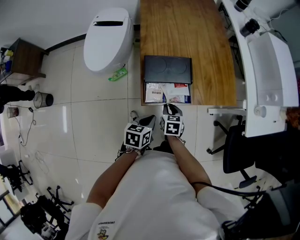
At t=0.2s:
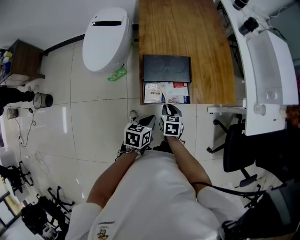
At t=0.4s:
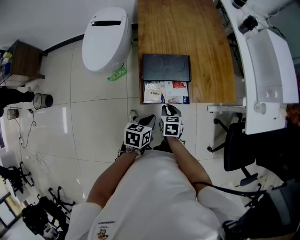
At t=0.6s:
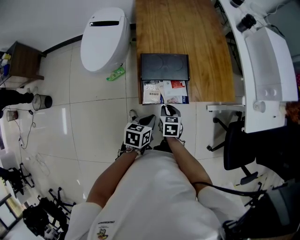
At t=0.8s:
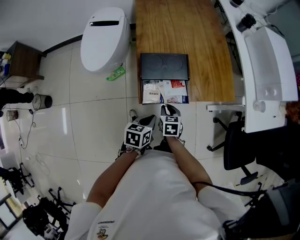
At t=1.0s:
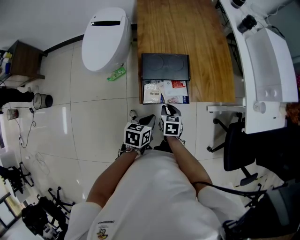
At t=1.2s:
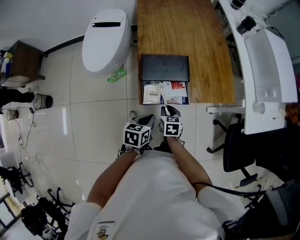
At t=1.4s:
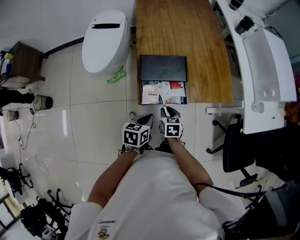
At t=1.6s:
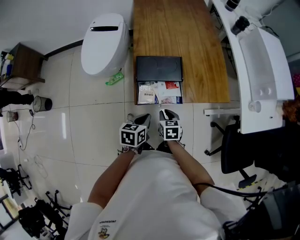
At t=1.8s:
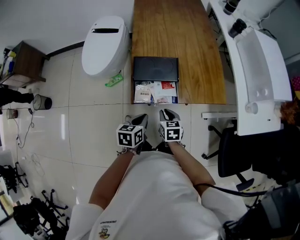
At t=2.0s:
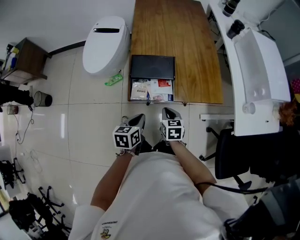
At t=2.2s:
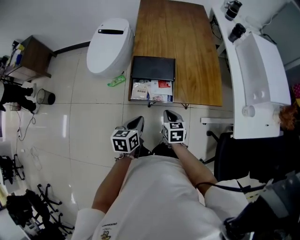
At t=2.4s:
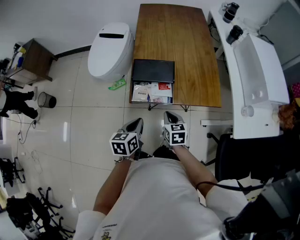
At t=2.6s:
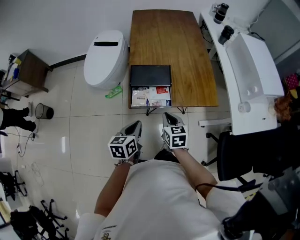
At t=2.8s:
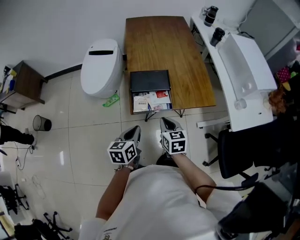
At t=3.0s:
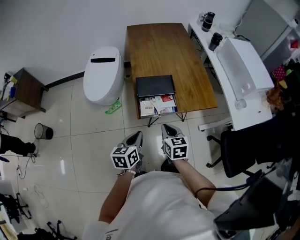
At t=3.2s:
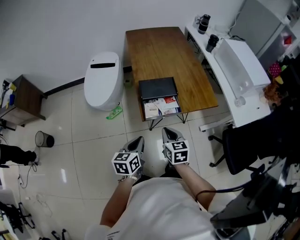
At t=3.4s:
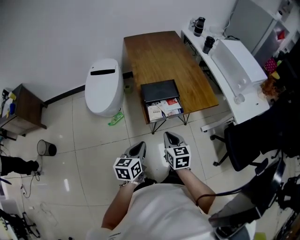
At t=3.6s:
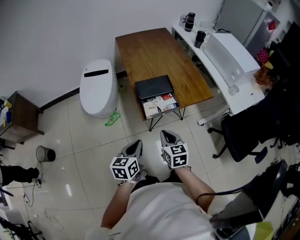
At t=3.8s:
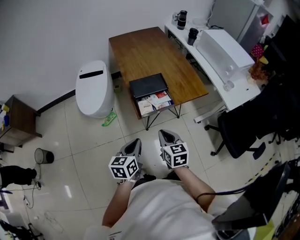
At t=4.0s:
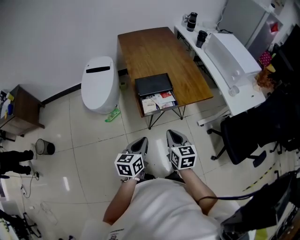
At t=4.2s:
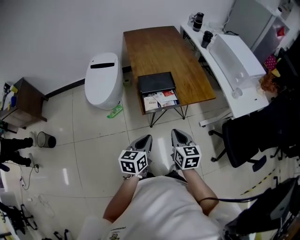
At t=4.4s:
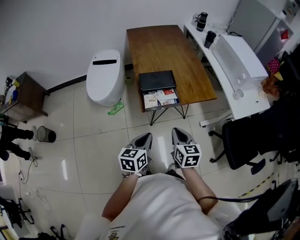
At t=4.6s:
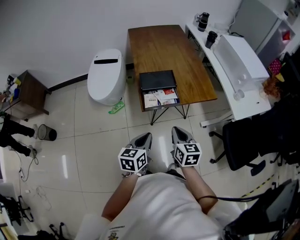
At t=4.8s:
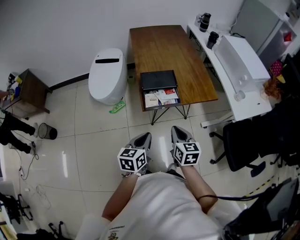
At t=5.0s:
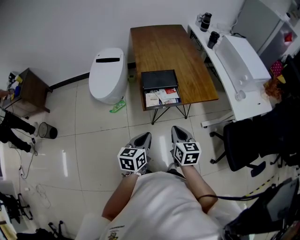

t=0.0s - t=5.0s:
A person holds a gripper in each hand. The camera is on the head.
t=0.0s - t=1.6s: The grippers stay close to where they were, moving slightly.
t=1.6s - t=3.4s: The right gripper shifts about 25 cm upward, backward and to the left, and rotates some 20 degrees. The left gripper goes about 20 cm upward, to the left and backward.
t=3.4s - t=5.0s: The two grippers go roughly 5 cm to the right.

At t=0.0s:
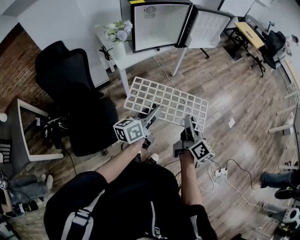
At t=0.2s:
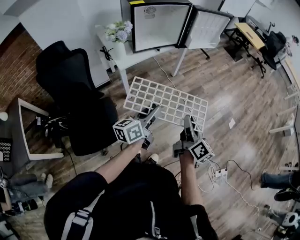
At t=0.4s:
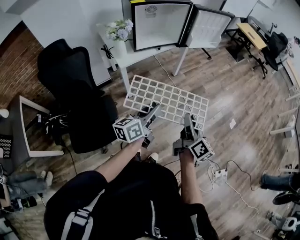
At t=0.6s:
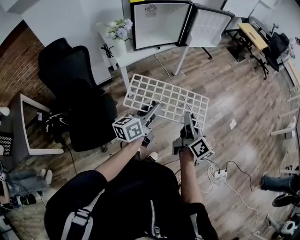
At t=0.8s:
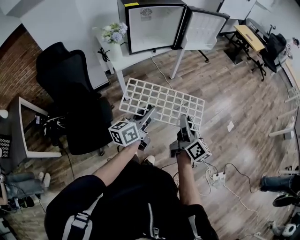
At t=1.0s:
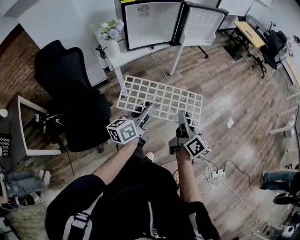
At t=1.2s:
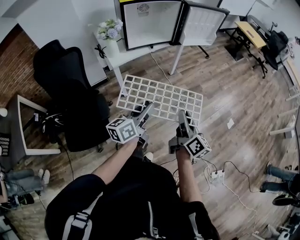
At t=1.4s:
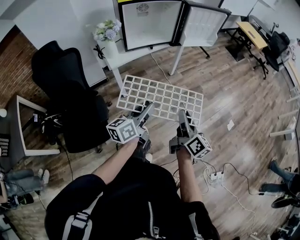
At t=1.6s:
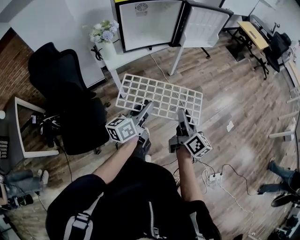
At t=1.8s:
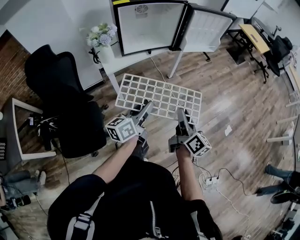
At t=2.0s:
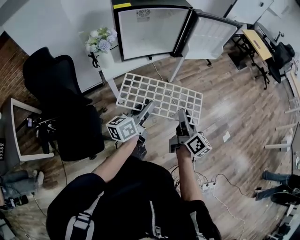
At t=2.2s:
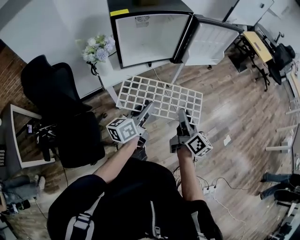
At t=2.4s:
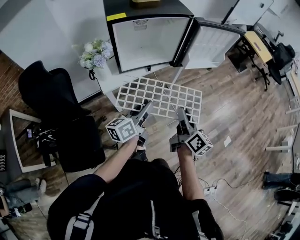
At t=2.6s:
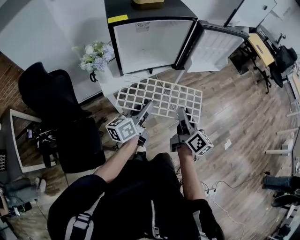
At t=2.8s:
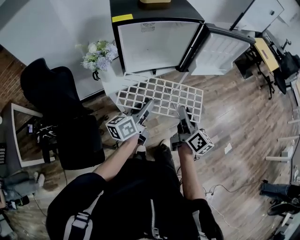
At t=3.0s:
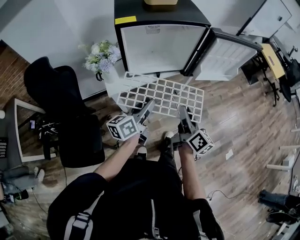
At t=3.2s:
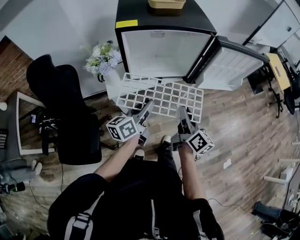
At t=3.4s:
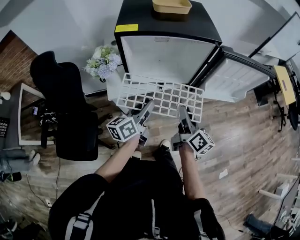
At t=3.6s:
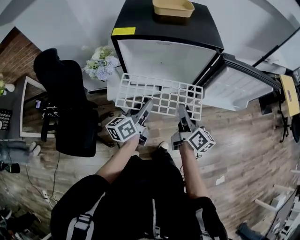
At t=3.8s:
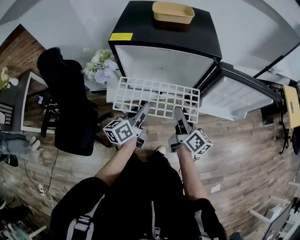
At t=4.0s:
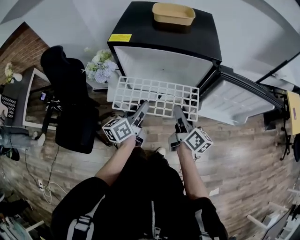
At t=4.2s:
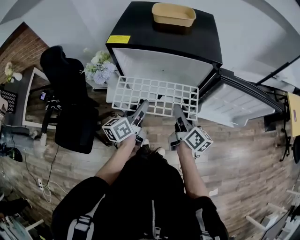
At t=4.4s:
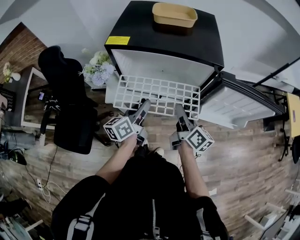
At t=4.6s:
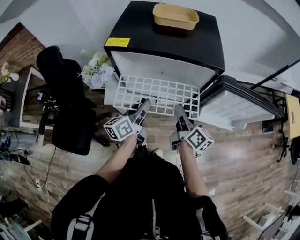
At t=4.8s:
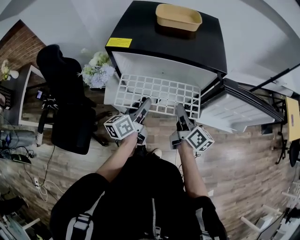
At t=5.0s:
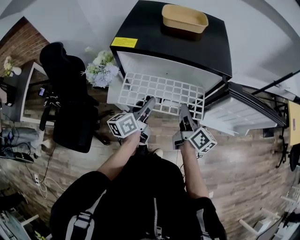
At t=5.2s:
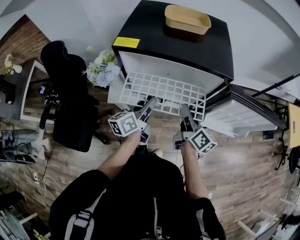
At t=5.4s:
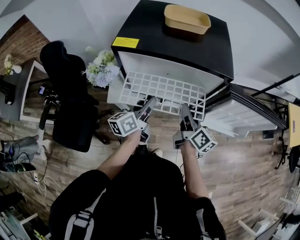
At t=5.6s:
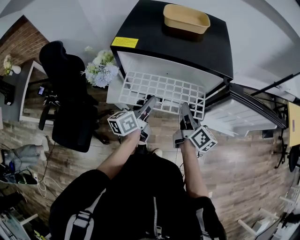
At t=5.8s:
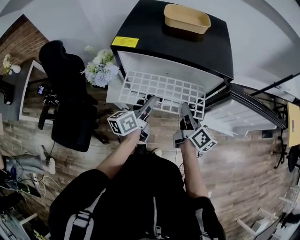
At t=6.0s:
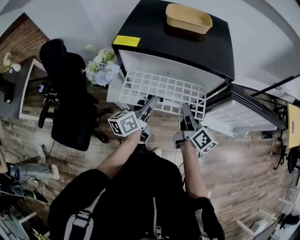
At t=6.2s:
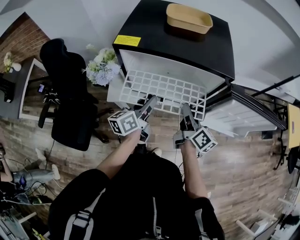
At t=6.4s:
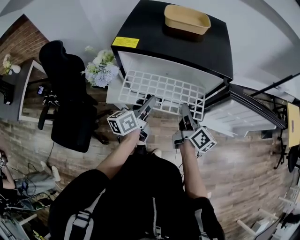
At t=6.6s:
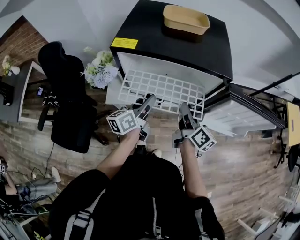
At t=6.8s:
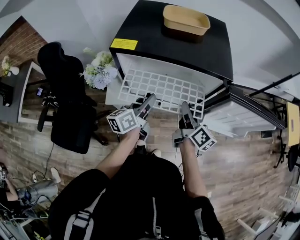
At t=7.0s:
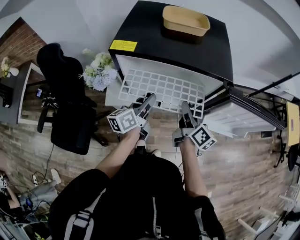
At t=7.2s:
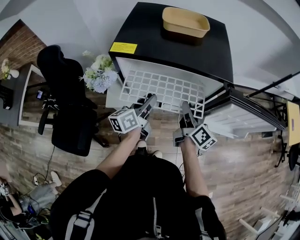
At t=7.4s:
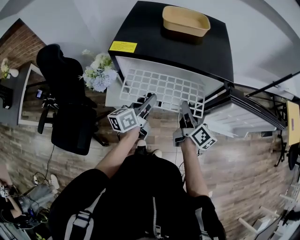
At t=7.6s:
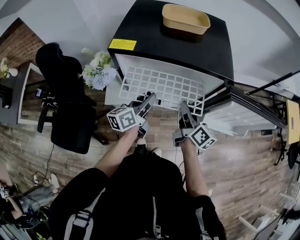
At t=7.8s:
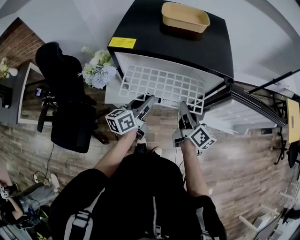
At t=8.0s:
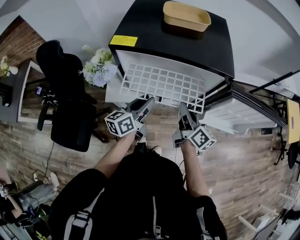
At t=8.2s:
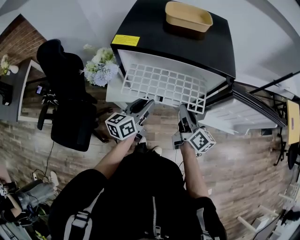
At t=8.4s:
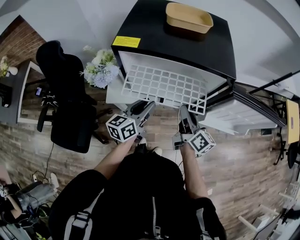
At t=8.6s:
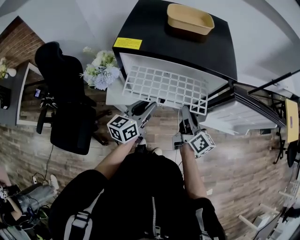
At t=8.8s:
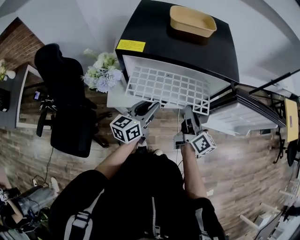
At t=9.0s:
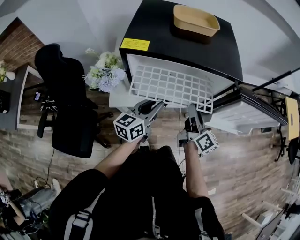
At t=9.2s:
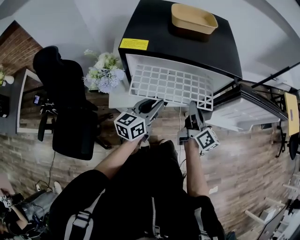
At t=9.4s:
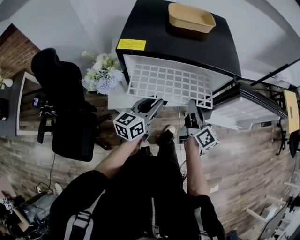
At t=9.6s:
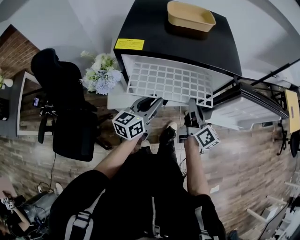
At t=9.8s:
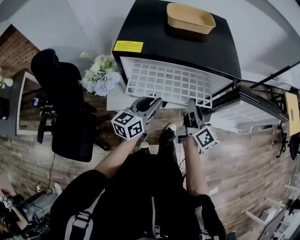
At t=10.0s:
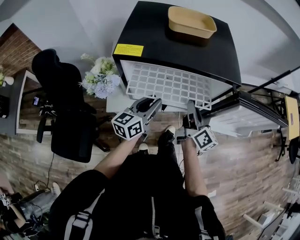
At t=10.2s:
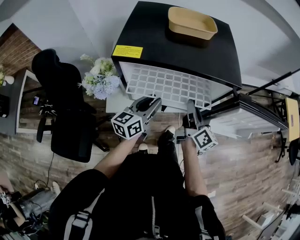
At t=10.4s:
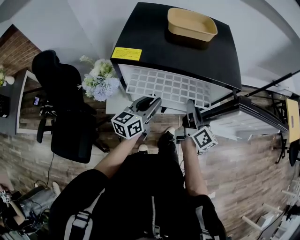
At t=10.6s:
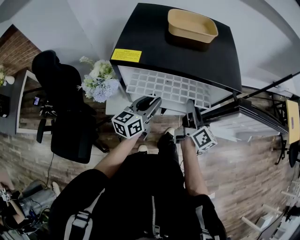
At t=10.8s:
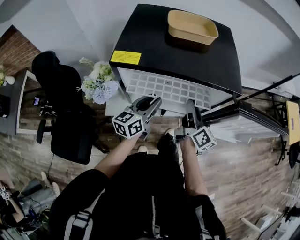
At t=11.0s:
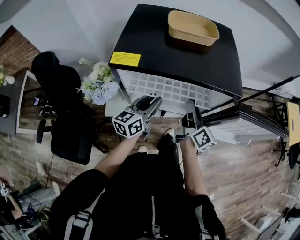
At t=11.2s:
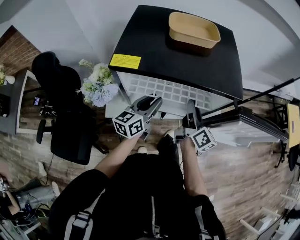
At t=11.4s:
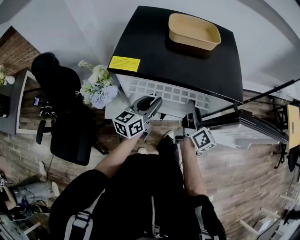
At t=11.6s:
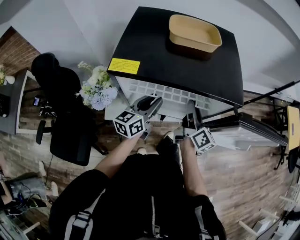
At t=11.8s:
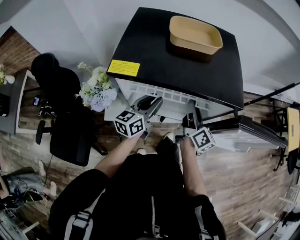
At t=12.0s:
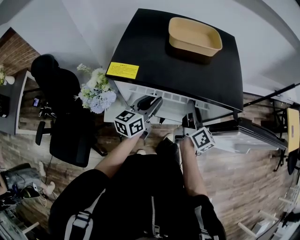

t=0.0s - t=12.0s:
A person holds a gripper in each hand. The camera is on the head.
t=0.0s - t=1.6s: Both grippers travel together forward, roughly 5 cm.
t=1.6s - t=3.0s: The grippers both shift forward by some 30 cm.
t=3.0s - t=4.4s: The left gripper ends up roughly 15 cm from where it was, and swivels about 20 degrees. The right gripper moves approximately 20 cm, and rotates approximately 30 degrees.
t=4.4s - t=6.0s: The grippers move only a little.
t=6.0s - t=7.6s: There are only small adjustments of the grippers.
t=7.6s - t=9.0s: The grippers stay close to where they were, moving slightly.
t=9.0s - t=10.4s: The two grippers go some 5 cm forward.
t=10.4s - t=12.0s: Both grippers move forward, some 5 cm.

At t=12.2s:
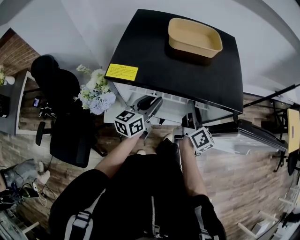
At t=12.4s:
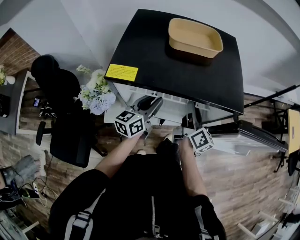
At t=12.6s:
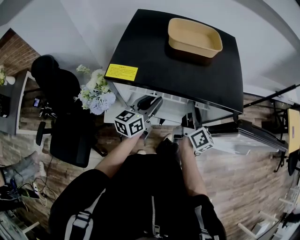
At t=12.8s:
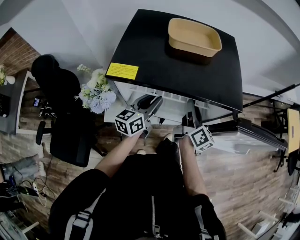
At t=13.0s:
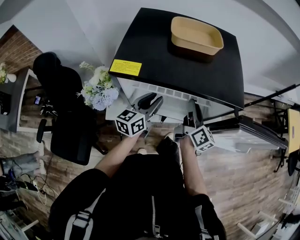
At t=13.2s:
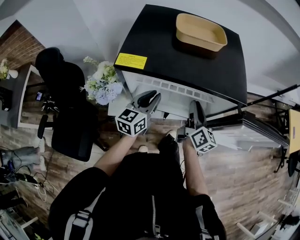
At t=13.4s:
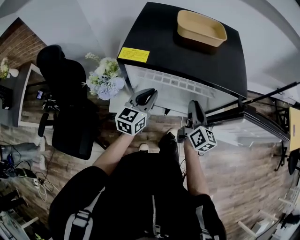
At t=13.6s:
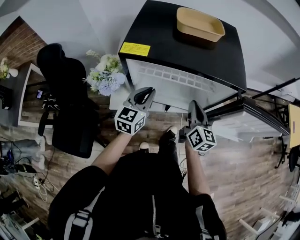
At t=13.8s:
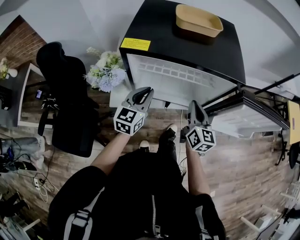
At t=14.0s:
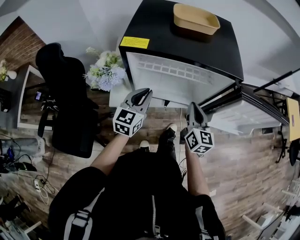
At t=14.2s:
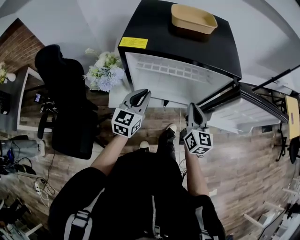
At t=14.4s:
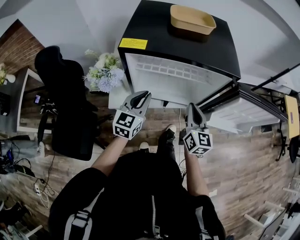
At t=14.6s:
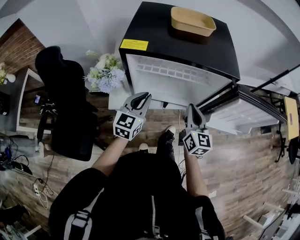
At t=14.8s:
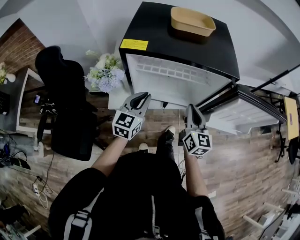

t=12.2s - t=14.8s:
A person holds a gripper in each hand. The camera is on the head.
t=12.2s - t=13.4s: The left gripper shifts by about 5 cm, and closes up. The right gripper moves backward, roughly 5 cm.
t=13.4s - t=14.8s: Both grippers travel together backward, roughly 5 cm. The right gripper turns by roughly 20 degrees.

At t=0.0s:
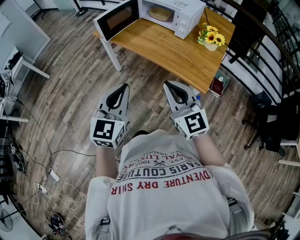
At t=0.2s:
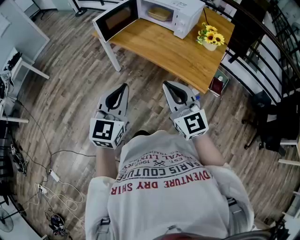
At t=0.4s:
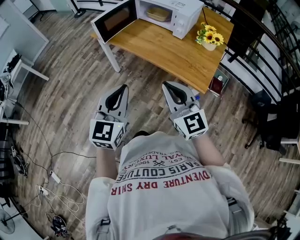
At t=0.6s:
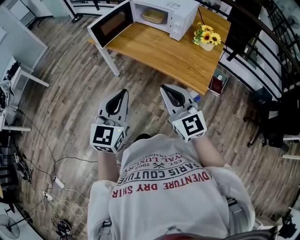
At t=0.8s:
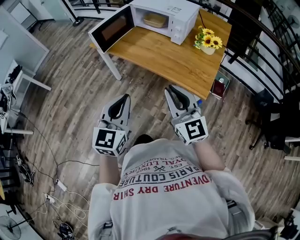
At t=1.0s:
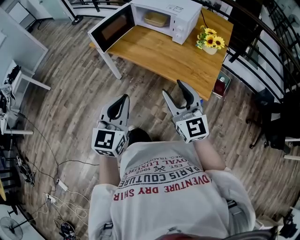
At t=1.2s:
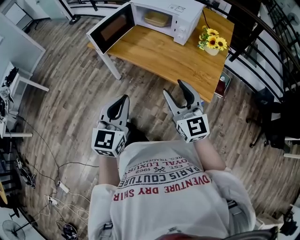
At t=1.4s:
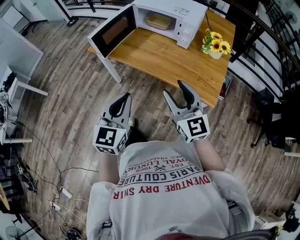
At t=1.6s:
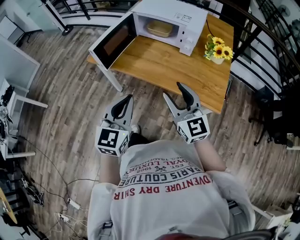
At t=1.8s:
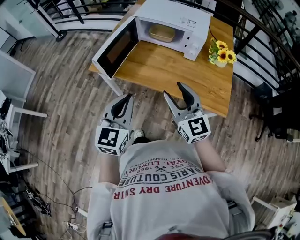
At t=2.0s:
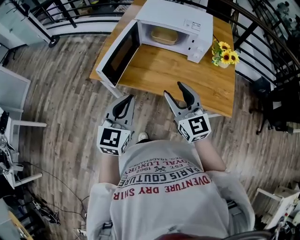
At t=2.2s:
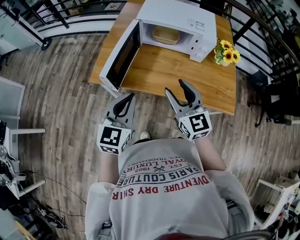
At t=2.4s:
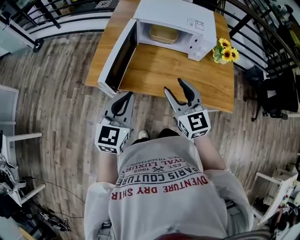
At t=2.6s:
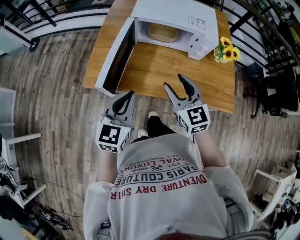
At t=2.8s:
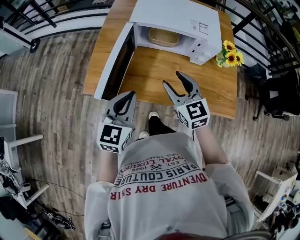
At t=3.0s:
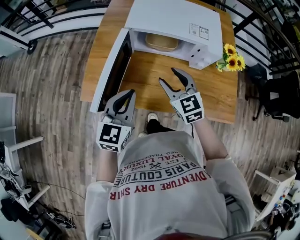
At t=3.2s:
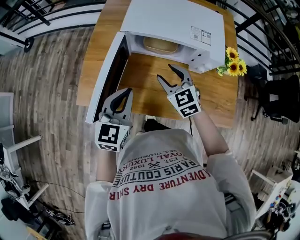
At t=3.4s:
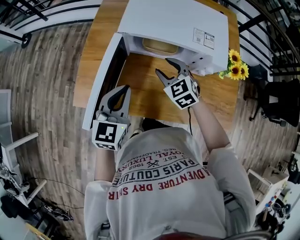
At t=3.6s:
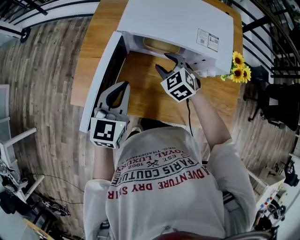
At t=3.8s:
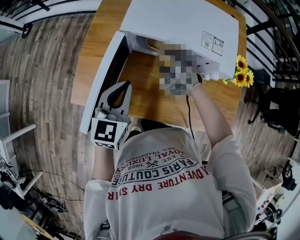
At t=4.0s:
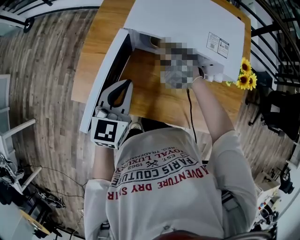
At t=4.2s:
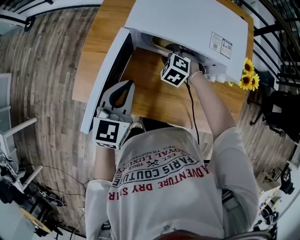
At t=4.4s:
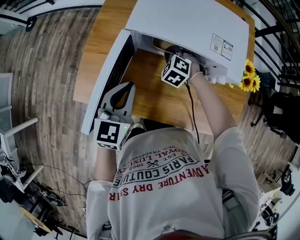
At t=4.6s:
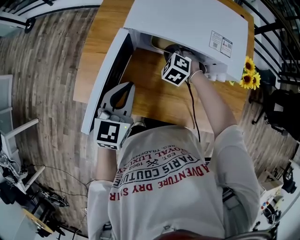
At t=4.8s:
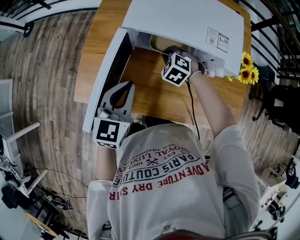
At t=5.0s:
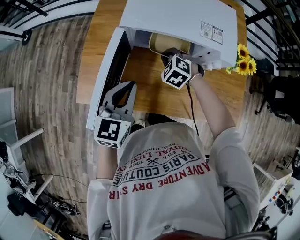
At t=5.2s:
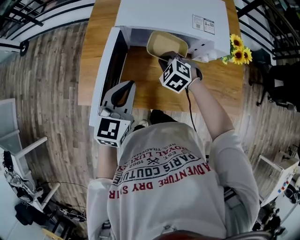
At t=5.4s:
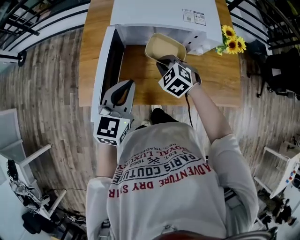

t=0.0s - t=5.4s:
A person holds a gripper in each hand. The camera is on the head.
t=0.0s - t=1.4s: The two grippers go approximately 10 cm forward. The right gripper opens.
t=1.4s - t=2.8s: The grippers both shift forward and to the left by roughly 35 cm. The left gripper rotates roughly 20 degrees; the right gripper changes its angle by roughly 30 degrees.
t=2.8s - t=4.0s: The right gripper heads forward and downward, covering about 25 cm, and points its fingers some 30 degrees further downward. The left gripper heads forward, covering some 15 cm.
t=4.0s - t=5.4s: The left gripper travels backward by roughly 5 cm, while the right gripper heads backward, covering about 10 cm, and closes its fingers.
